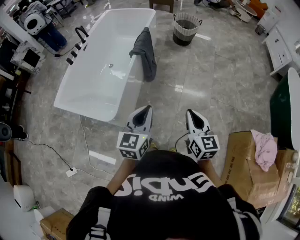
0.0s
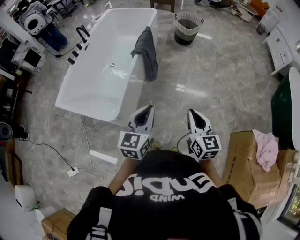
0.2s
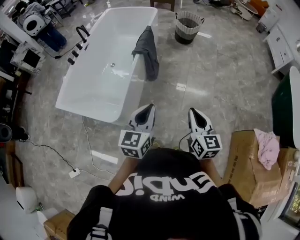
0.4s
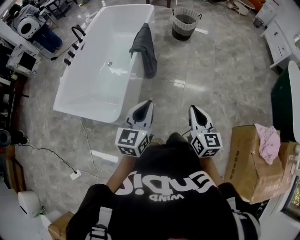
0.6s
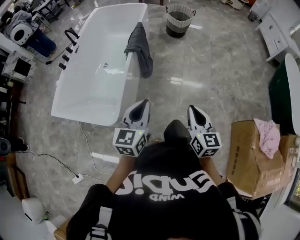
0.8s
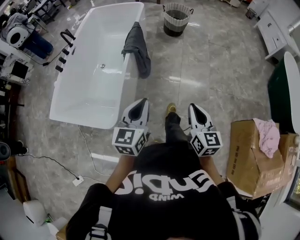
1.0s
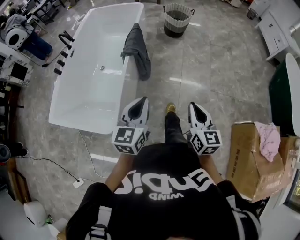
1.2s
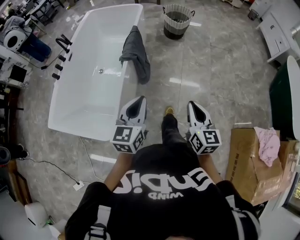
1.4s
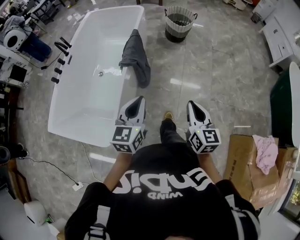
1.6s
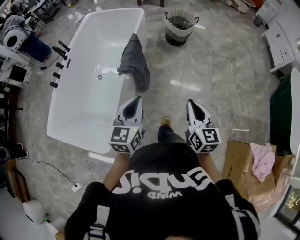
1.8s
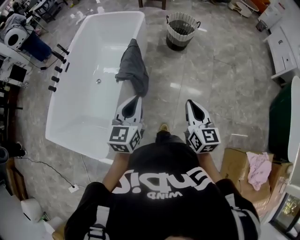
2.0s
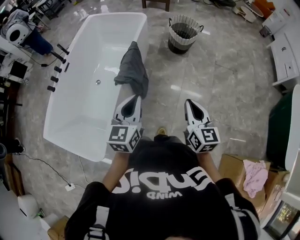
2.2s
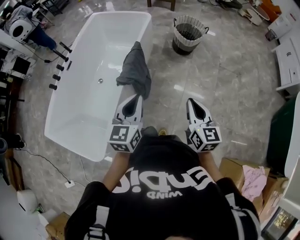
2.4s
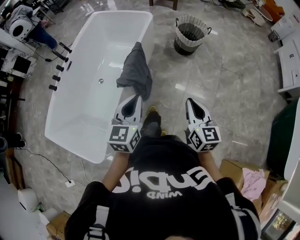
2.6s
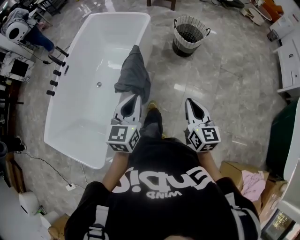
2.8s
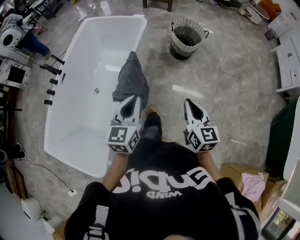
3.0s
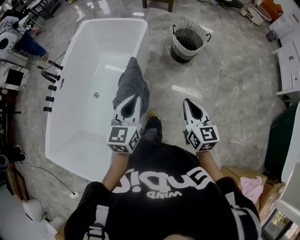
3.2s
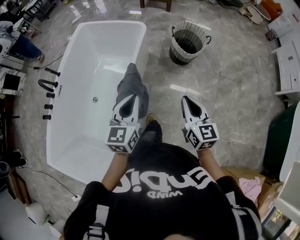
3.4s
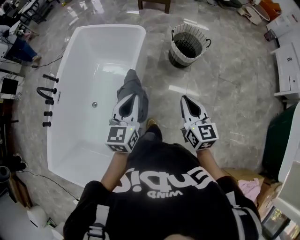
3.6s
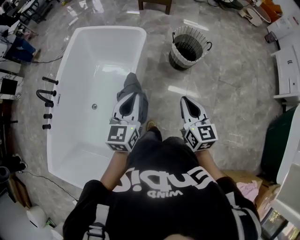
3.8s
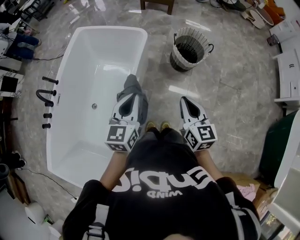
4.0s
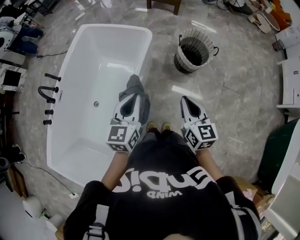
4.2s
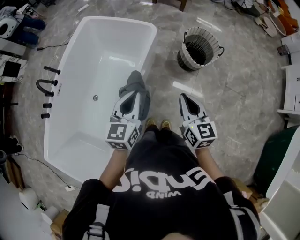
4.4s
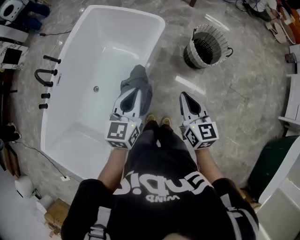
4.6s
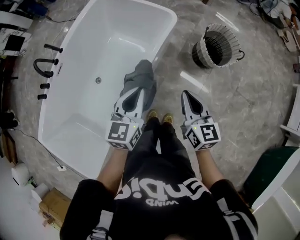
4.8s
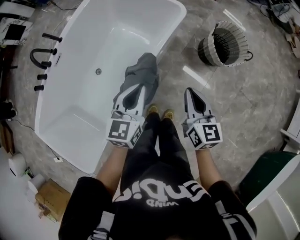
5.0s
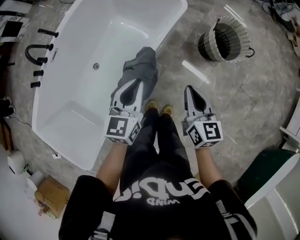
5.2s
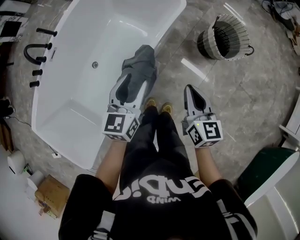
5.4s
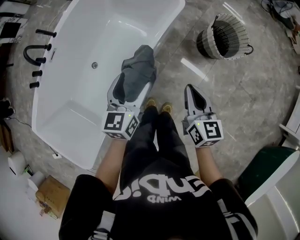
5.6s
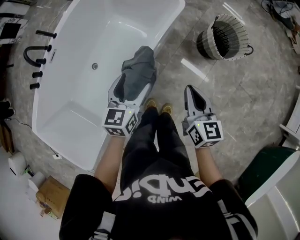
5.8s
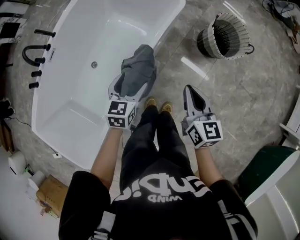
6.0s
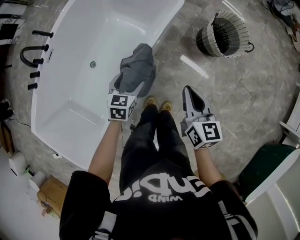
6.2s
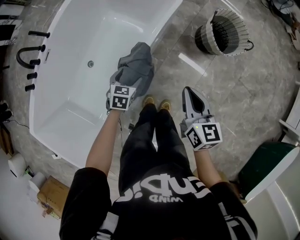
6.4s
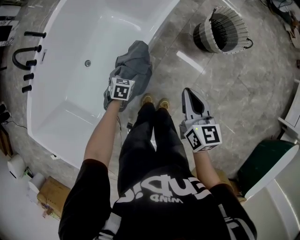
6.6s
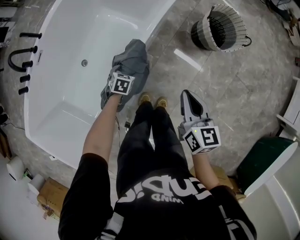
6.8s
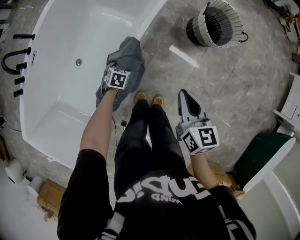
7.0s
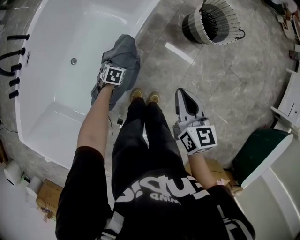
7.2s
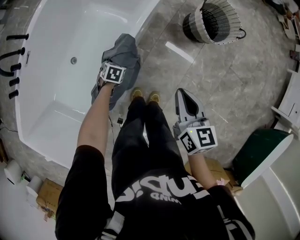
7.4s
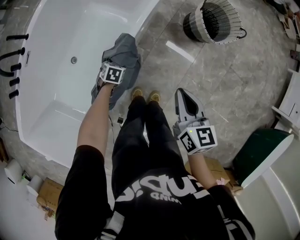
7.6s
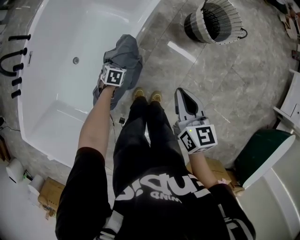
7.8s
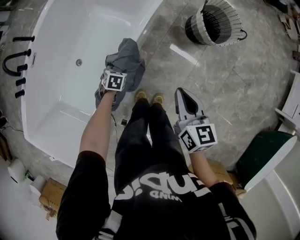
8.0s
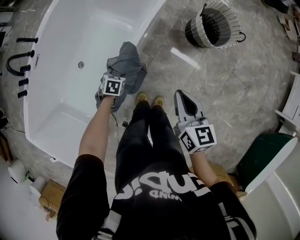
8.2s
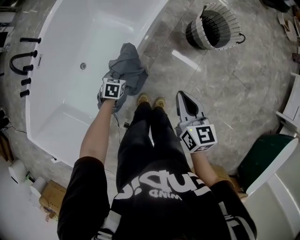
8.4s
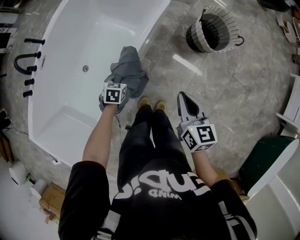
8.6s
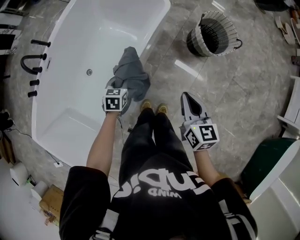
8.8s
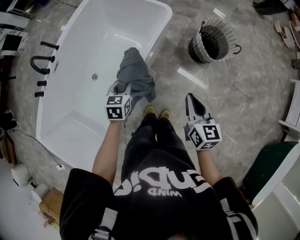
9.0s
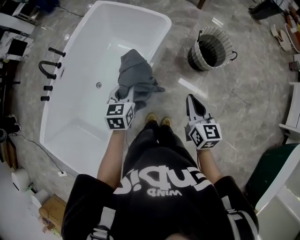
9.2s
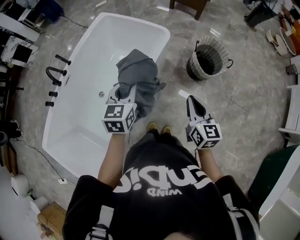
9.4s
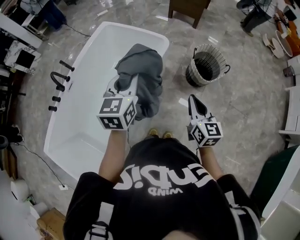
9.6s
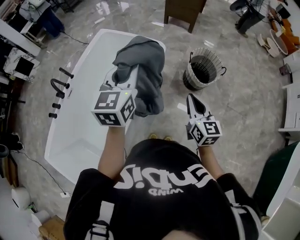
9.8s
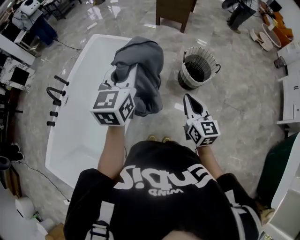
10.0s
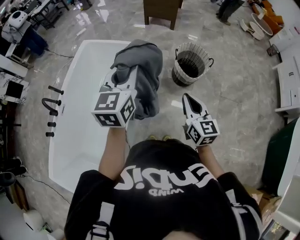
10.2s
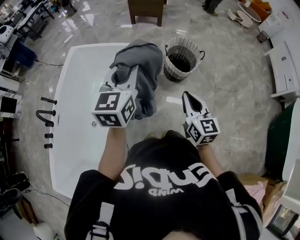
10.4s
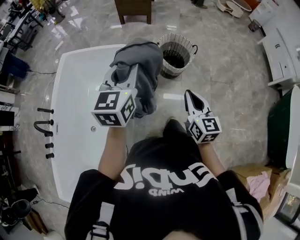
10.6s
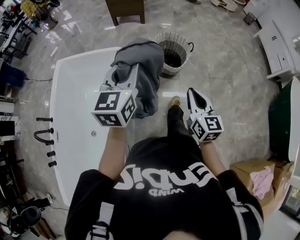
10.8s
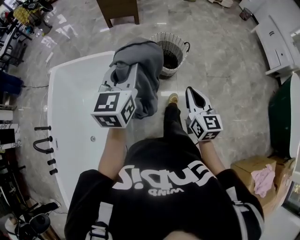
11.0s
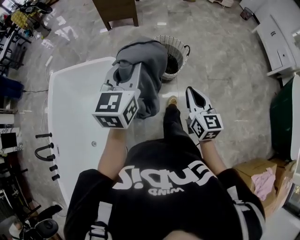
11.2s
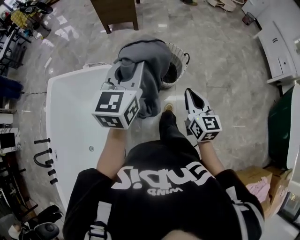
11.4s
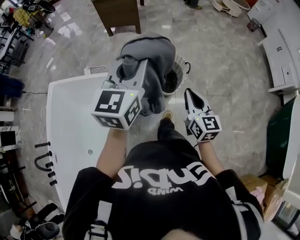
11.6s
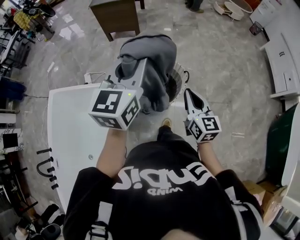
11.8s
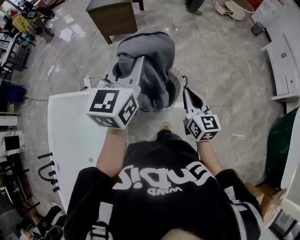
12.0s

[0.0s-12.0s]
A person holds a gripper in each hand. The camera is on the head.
0.0s to 1.6s: The grippers both shift forward by some 25 cm.
1.6s to 3.0s: The two grippers go about 35 cm forward.
3.0s to 4.4s: Both grippers travel together forward, approximately 30 cm.
4.4s to 6.0s: The left gripper goes approximately 20 cm downward, and opens up, while the right gripper goes about 15 cm downward and forward.
6.0s to 7.6s: The left gripper moves downward, approximately 25 cm, and angles its fingers downward, by roughly 40 degrees; the right gripper ends up roughly 5 cm from where it was.
7.6s to 9.0s: The left gripper travels upward by roughly 30 cm, changes its angle by approximately 30 degrees, and closes up. Meanwhile the right gripper travels upward by roughly 5 cm.
9.0s to 10.4s: The right gripper moves upward, about 10 cm, and changes its angle by about 20 degrees. Meanwhile the left gripper heads upward, covering approximately 35 cm, and angles its fingers upward, by about 30 degrees.
10.4s to 12.0s: Both grippers are carried forward and to the right, approximately 50 cm.

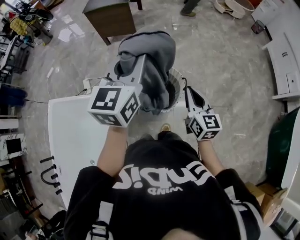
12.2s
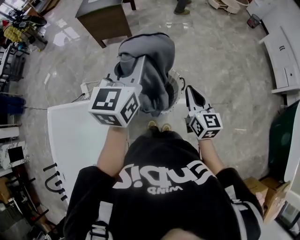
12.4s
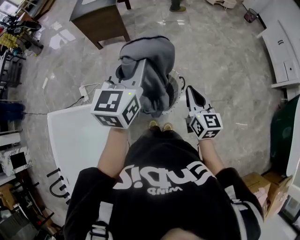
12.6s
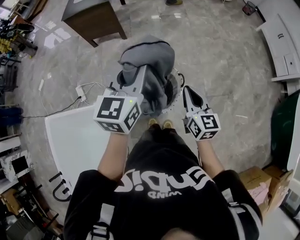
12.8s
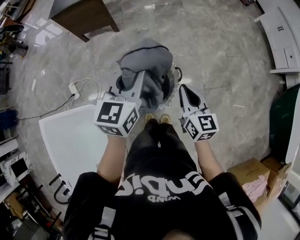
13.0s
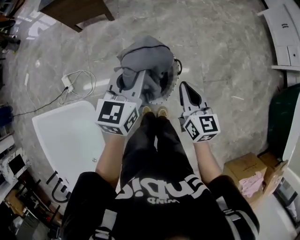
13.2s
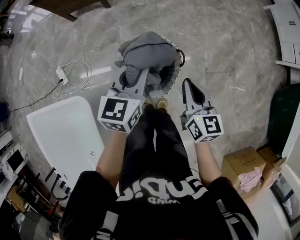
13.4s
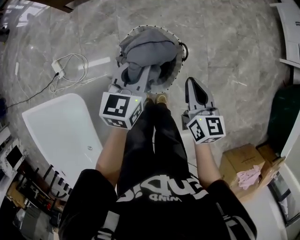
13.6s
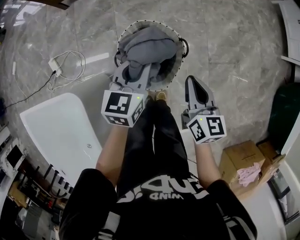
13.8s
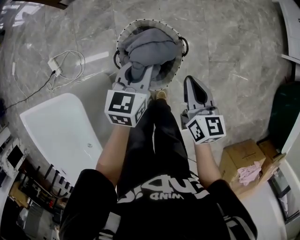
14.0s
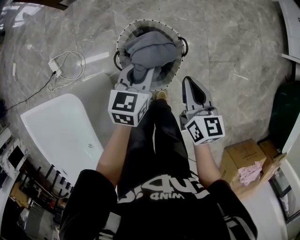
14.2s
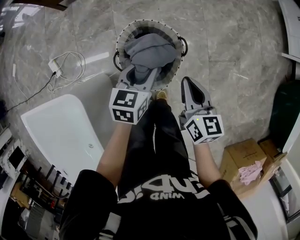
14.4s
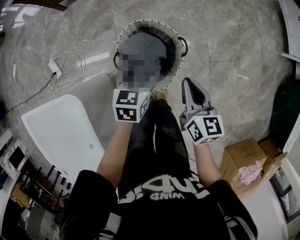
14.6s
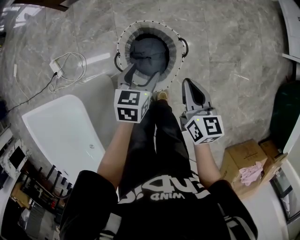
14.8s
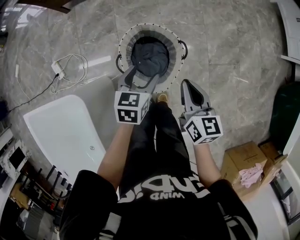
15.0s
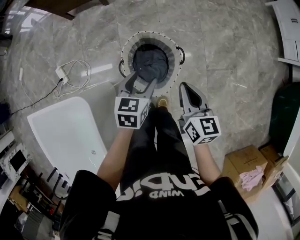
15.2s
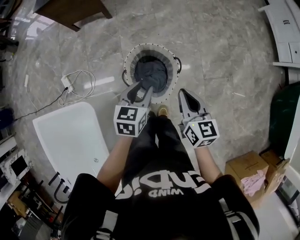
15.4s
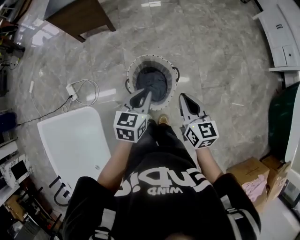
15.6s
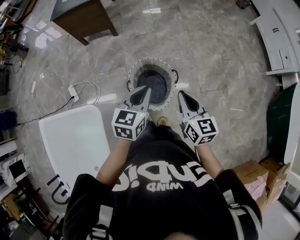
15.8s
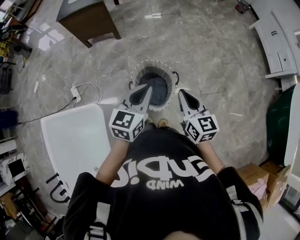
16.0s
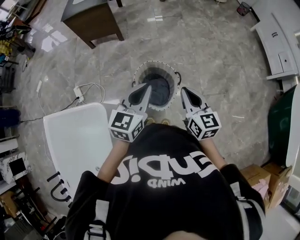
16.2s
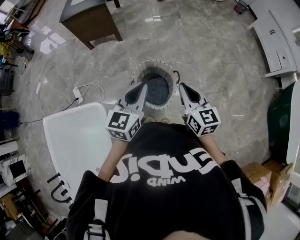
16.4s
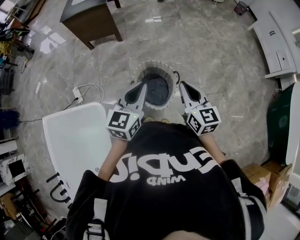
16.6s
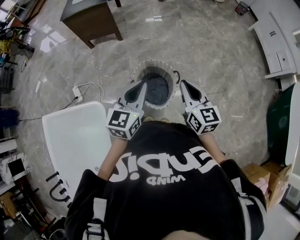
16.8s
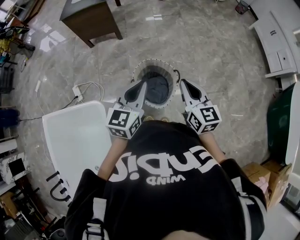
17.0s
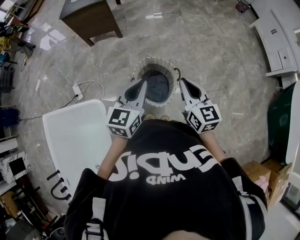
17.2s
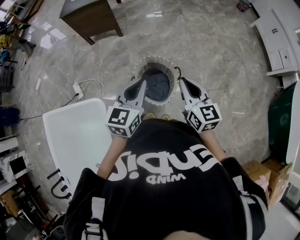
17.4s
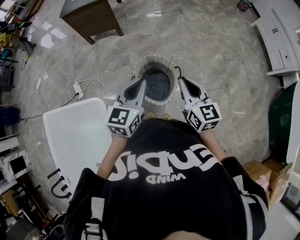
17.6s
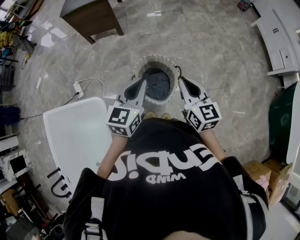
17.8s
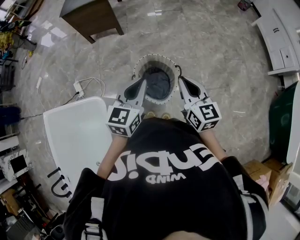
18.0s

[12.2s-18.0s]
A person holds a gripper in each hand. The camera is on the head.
12.2s to 13.6s: The left gripper is displaced downward by about 35 cm, and swivels some 30 degrees. The right gripper moves downward and forward, about 25 cm.
13.6s to 15.0s: The left gripper goes roughly 10 cm downward, and opens its fingers.
15.0s to 16.6s: Both grippers travel together upward, roughly 25 cm. The left gripper changes its angle by roughly 30 degrees, and closes its fingers. Meanwhile the right gripper turns by approximately 20 degrees.
16.6s to 18.0s: Neither gripper changes place.

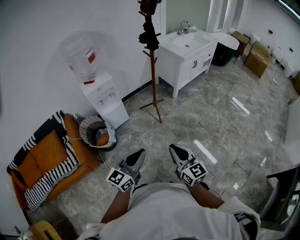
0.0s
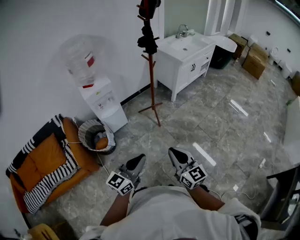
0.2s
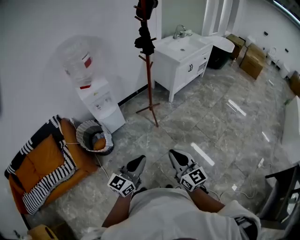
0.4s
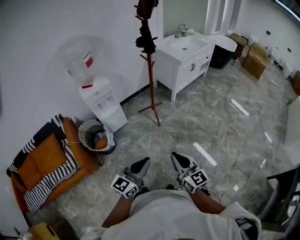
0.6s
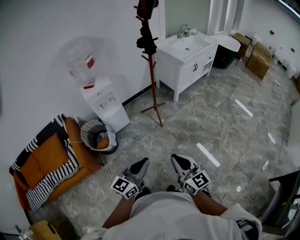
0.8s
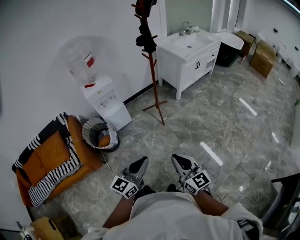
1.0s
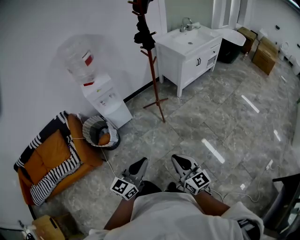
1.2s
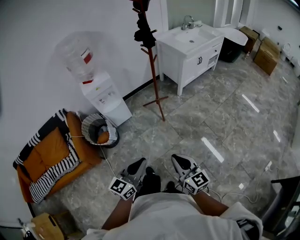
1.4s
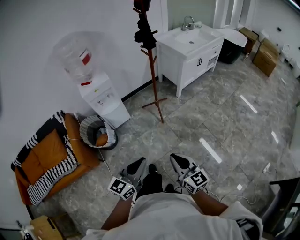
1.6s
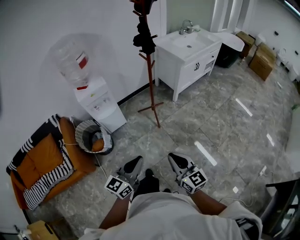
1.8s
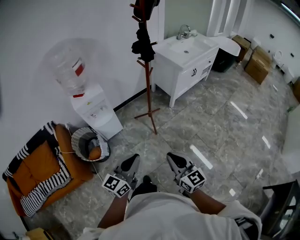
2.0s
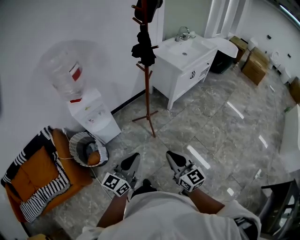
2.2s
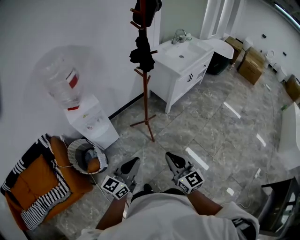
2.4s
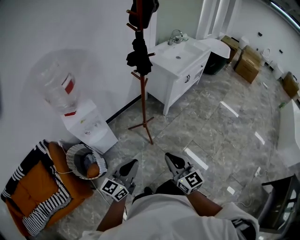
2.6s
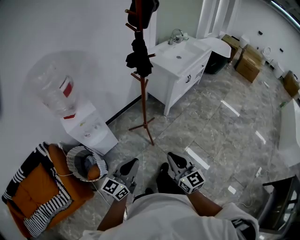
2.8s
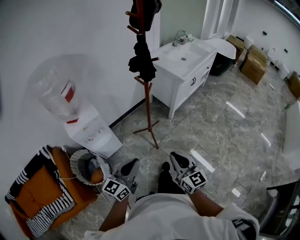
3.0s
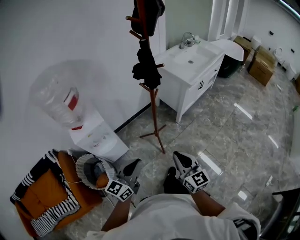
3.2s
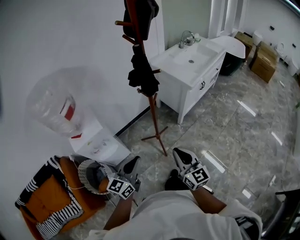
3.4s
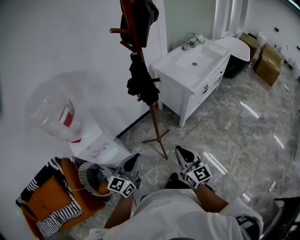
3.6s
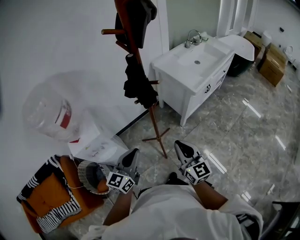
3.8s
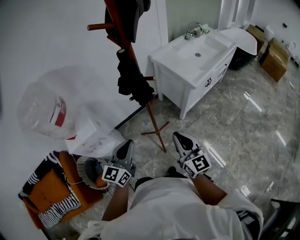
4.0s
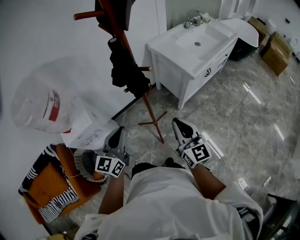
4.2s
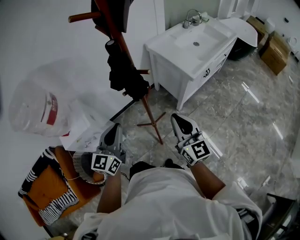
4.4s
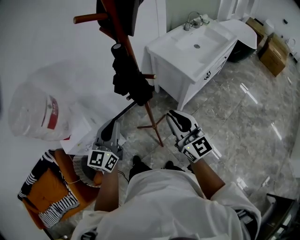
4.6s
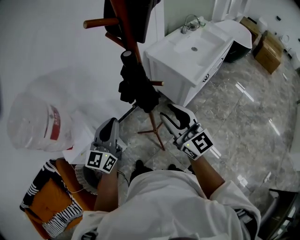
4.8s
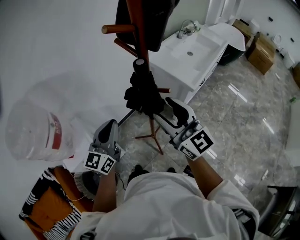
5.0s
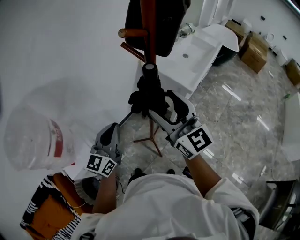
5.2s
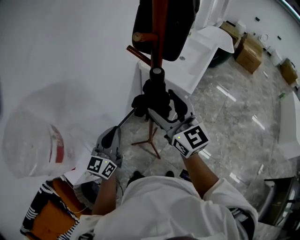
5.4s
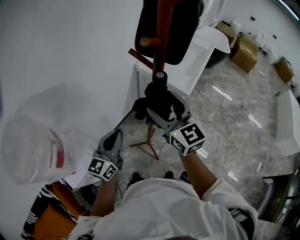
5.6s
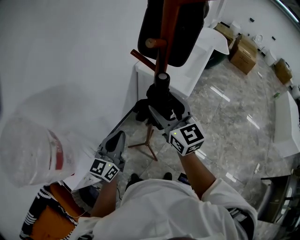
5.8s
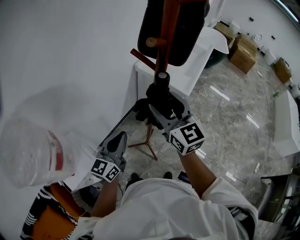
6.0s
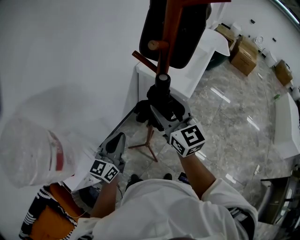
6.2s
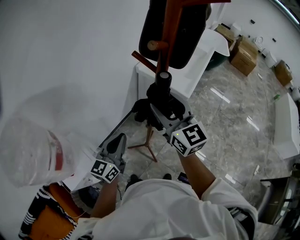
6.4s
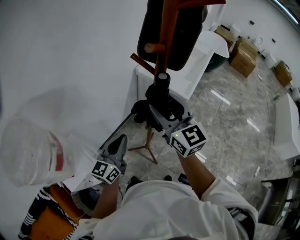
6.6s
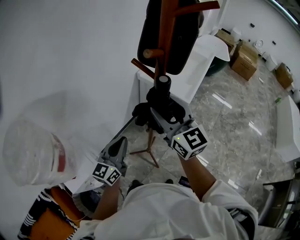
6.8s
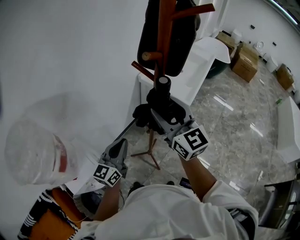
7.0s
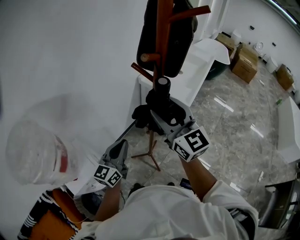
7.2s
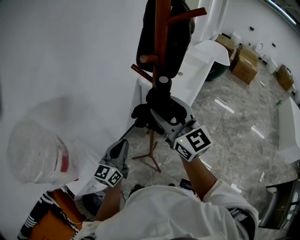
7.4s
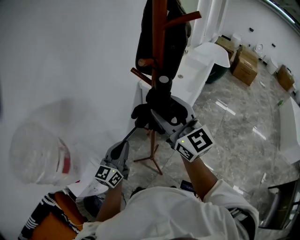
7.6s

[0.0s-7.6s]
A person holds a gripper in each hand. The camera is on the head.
0.0s to 1.6s: The two grippers go about 5 cm to the right.
1.6s to 3.0s: The grippers both shift forward by approximately 30 cm.
3.0s to 4.6s: The grippers both shift forward by some 35 cm. The left gripper swivels about 20 degrees.
4.6s to 6.0s: The left gripper moves forward and to the left, about 10 cm, and changes its angle by some 20 degrees. The right gripper is displaced to the left, forward and upward by some 20 cm, rotates some 20 degrees, and opens its fingers.
6.0s to 7.6s: The right gripper moves upward, some 10 cm.
